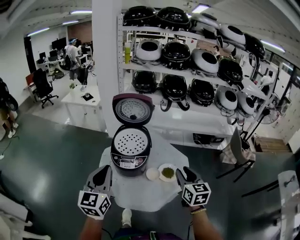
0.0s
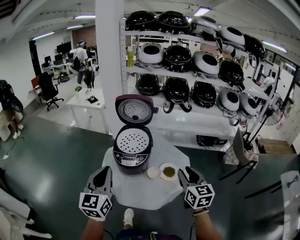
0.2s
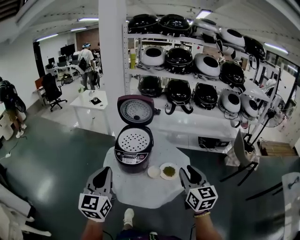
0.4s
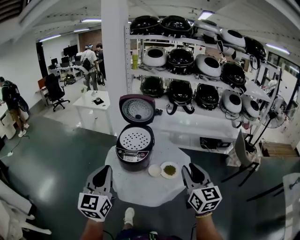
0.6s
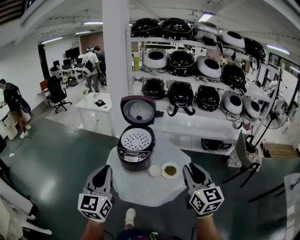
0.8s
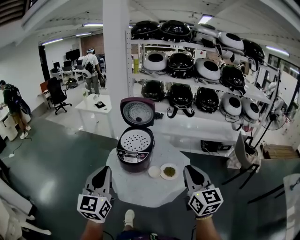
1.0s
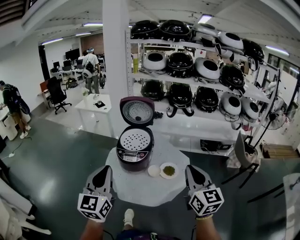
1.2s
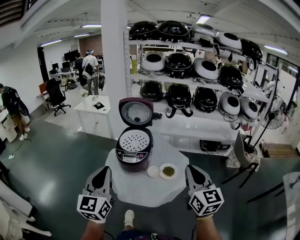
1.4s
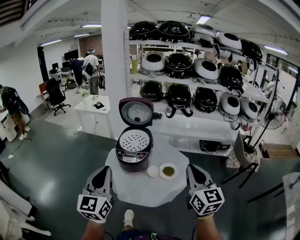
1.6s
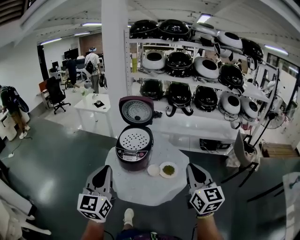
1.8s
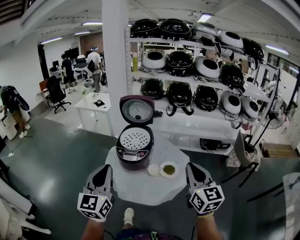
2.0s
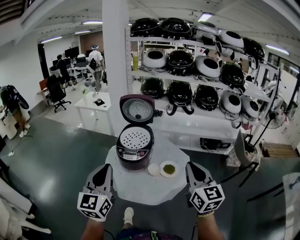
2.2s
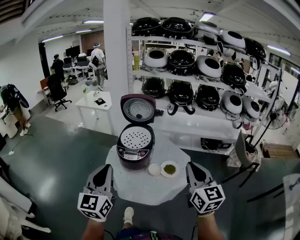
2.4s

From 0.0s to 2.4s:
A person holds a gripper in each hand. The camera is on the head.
From 0.0s to 1.2s: Both grippers travel together backward and upward, about 15 cm. The right gripper closes its fingers.
From 1.2s to 2.4s: Neither gripper changes place.

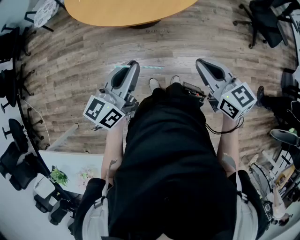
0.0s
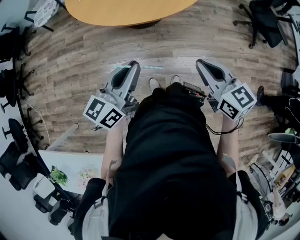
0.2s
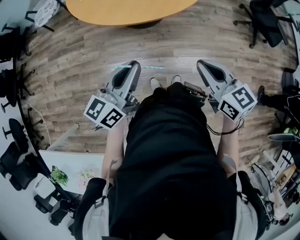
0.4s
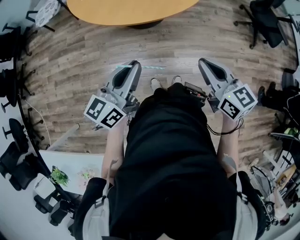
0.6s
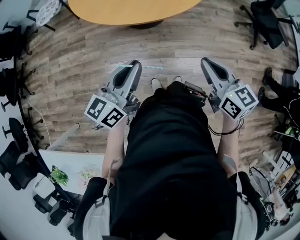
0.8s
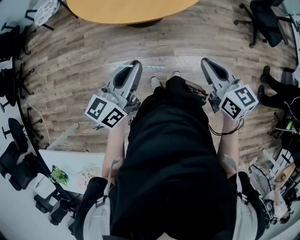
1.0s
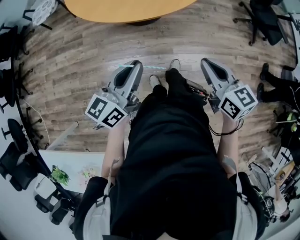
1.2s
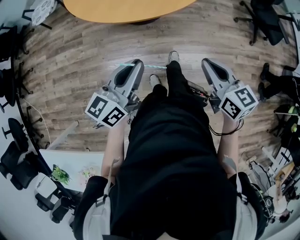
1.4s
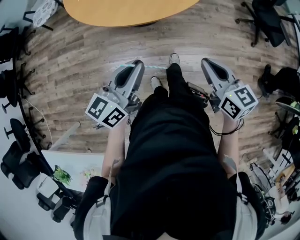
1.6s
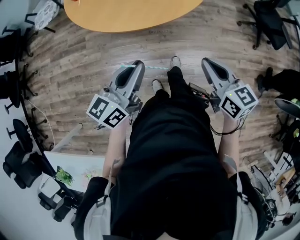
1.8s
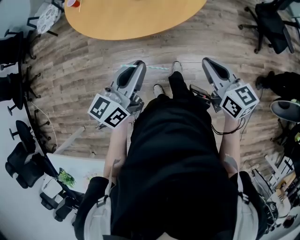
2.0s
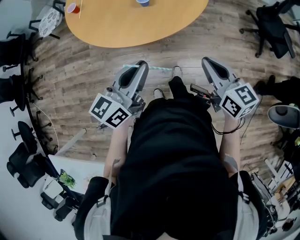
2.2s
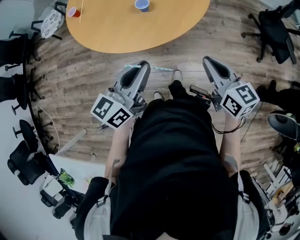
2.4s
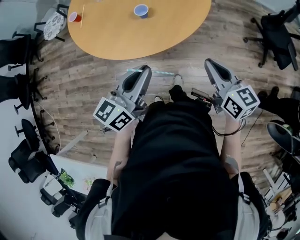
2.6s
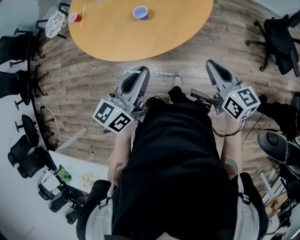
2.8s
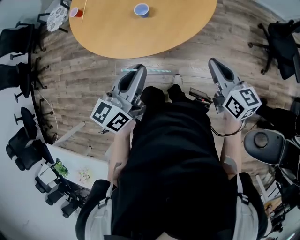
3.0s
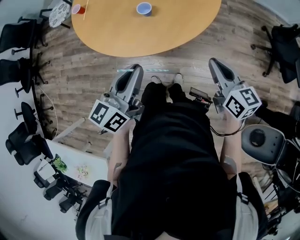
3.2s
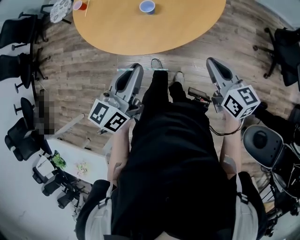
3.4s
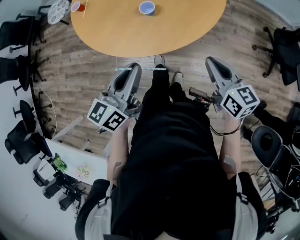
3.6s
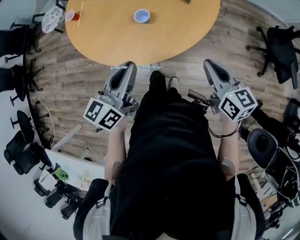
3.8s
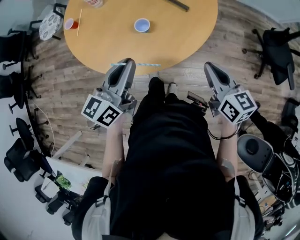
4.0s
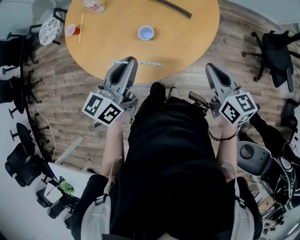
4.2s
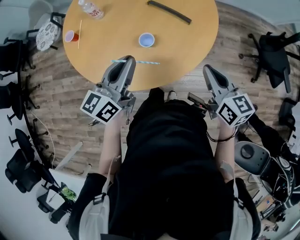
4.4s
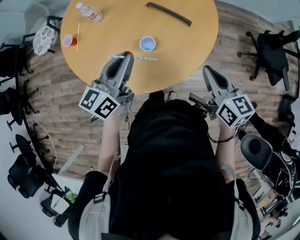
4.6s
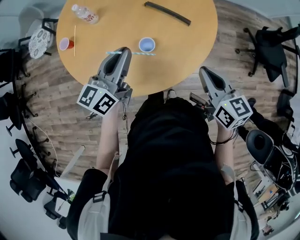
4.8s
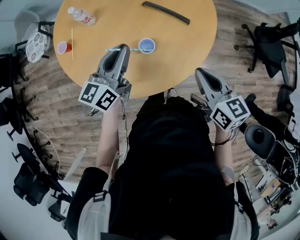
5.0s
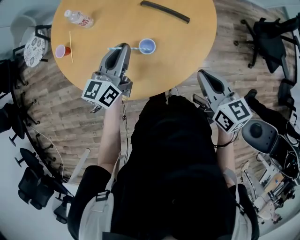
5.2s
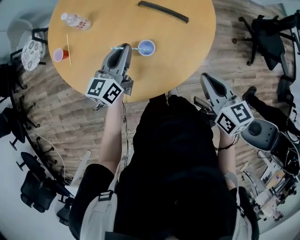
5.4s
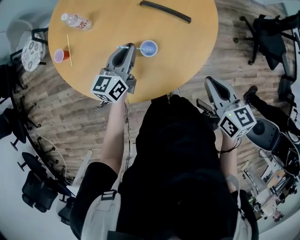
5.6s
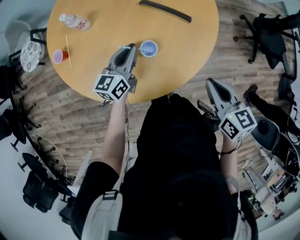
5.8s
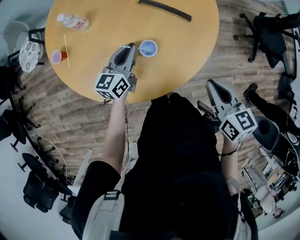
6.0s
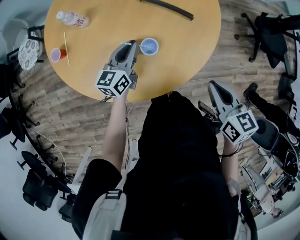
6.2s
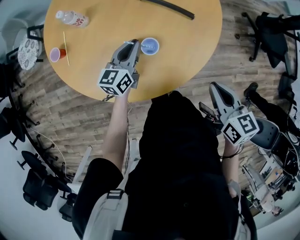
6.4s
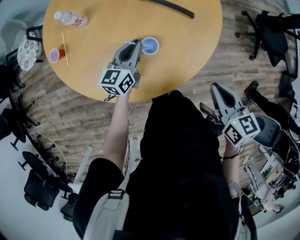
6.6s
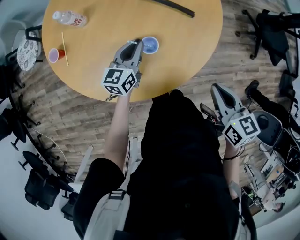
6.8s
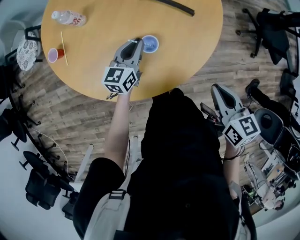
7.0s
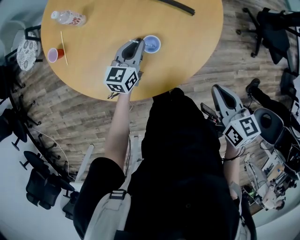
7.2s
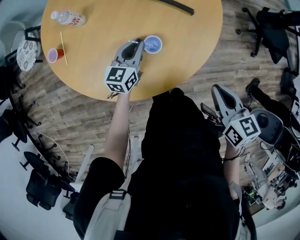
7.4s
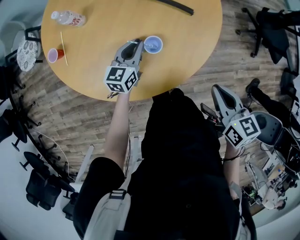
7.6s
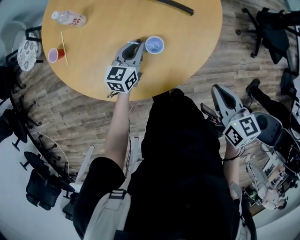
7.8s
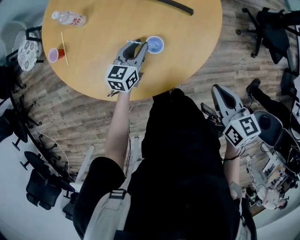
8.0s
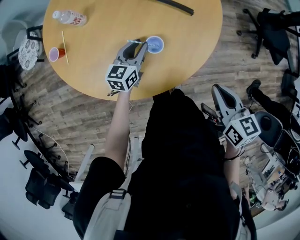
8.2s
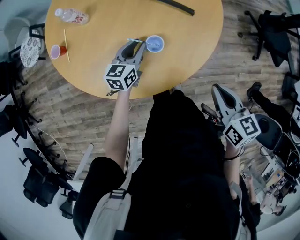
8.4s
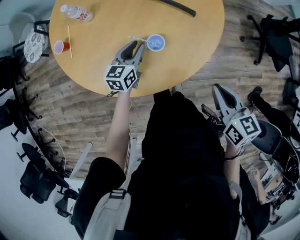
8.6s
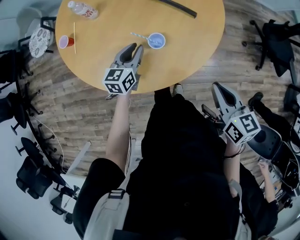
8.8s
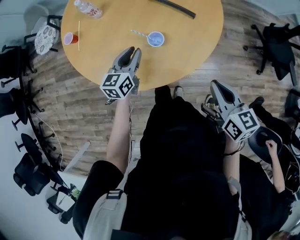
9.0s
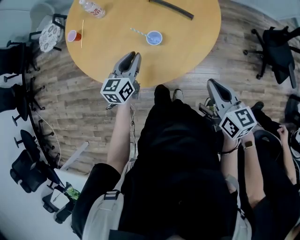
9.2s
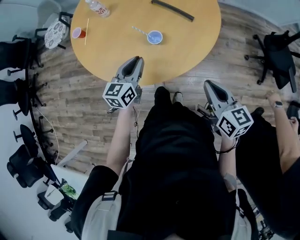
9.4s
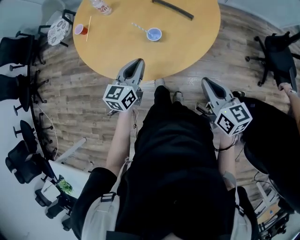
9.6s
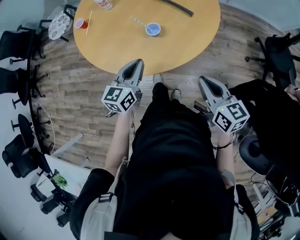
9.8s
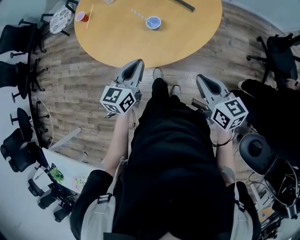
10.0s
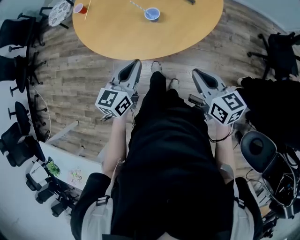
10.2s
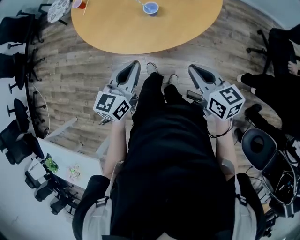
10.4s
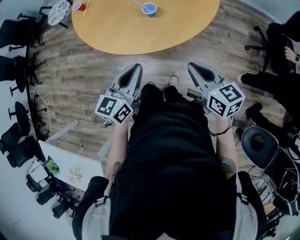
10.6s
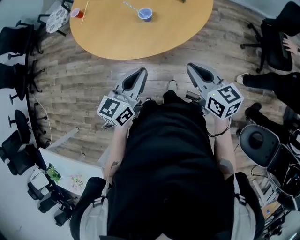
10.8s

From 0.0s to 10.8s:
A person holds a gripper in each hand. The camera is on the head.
From 0.0s to 1.6s: The grippers make only small movements.
From 1.6s to 3.0s: The grippers both shift forward and to the right by about 25 cm.
From 3.0s to 4.6s: The two grippers go roughly 20 cm forward and to the left.
From 4.6s to 6.2s: The left gripper heads downward and forward, covering approximately 20 cm.
From 6.2s to 7.8s: The left gripper moves approximately 5 cm.
From 7.8s to 9.2s: The left gripper travels backward and upward by roughly 15 cm. The right gripper moves approximately 5 cm.
From 9.2s to 10.8s: The left gripper is displaced backward by about 25 cm. Meanwhile the right gripper goes about 10 cm backward.

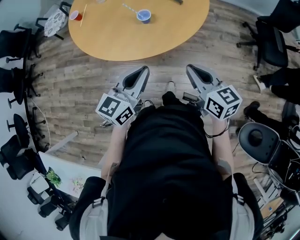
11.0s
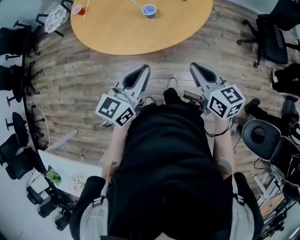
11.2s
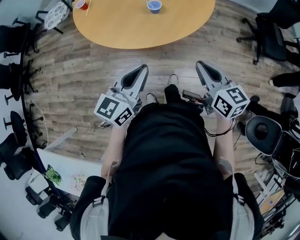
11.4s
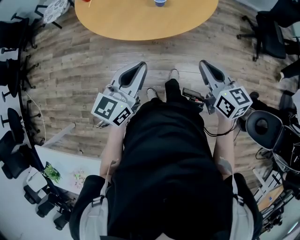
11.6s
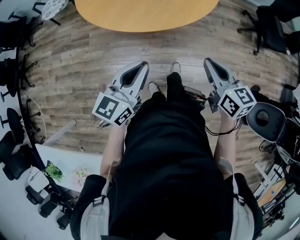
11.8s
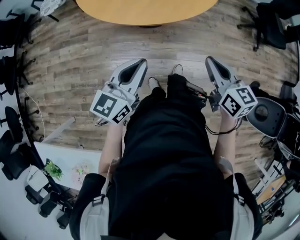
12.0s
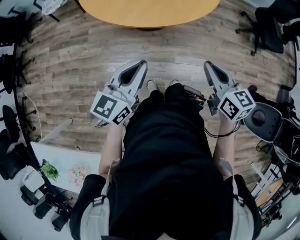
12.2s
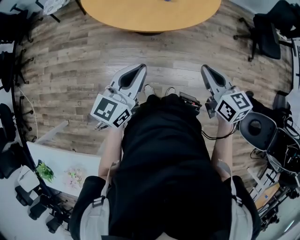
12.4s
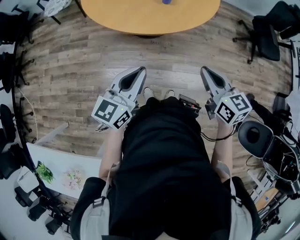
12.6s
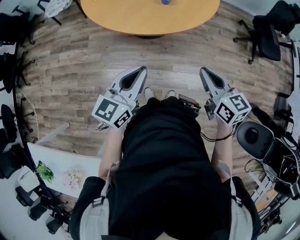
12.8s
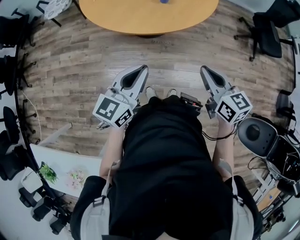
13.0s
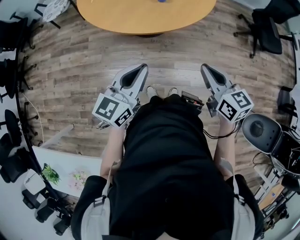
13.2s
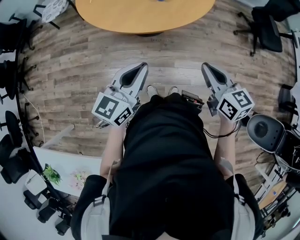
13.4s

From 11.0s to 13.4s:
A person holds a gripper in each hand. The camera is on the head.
From 11.0s to 12.2s: The right gripper shifts roughly 15 cm backward and to the left. The left gripper travels to the left and backward by roughly 20 cm.
From 12.2s to 13.4s: The grippers stay close to where they were, moving slightly.

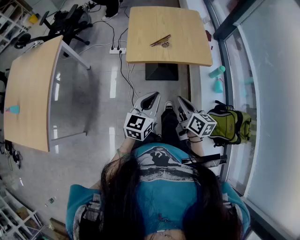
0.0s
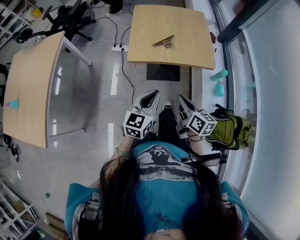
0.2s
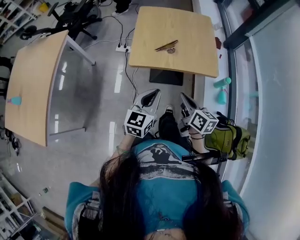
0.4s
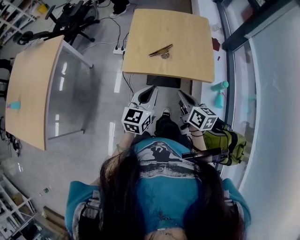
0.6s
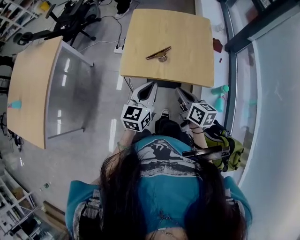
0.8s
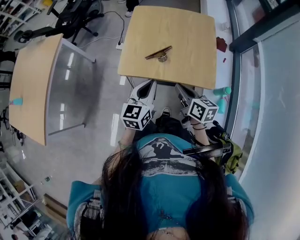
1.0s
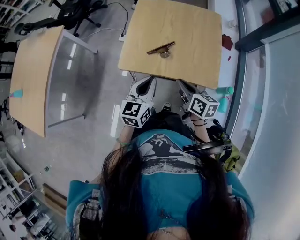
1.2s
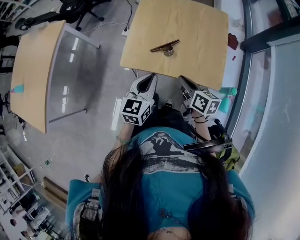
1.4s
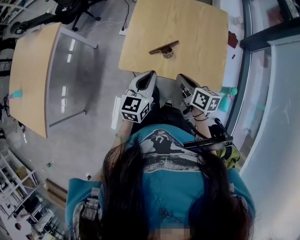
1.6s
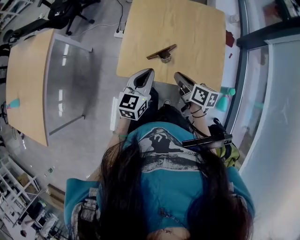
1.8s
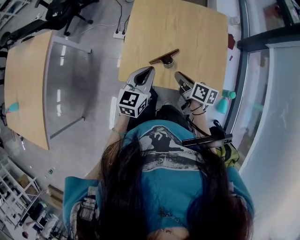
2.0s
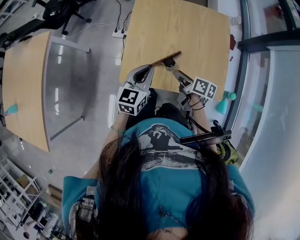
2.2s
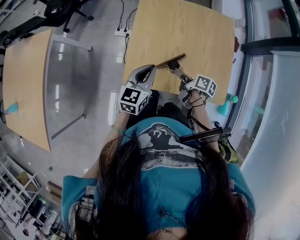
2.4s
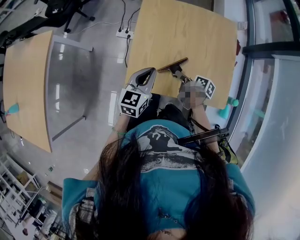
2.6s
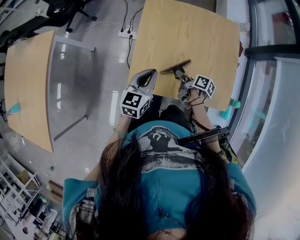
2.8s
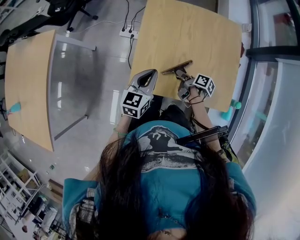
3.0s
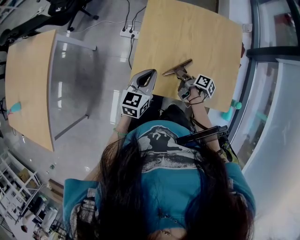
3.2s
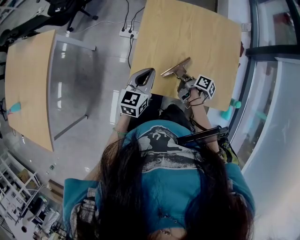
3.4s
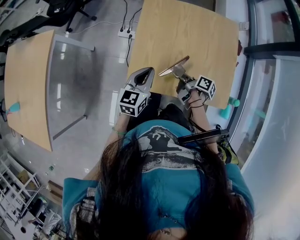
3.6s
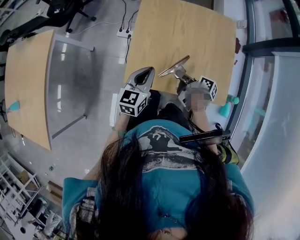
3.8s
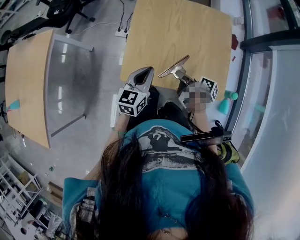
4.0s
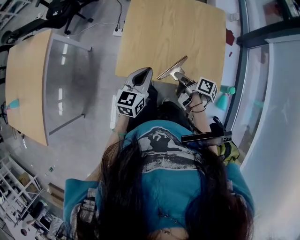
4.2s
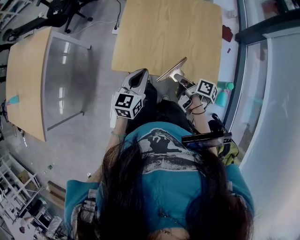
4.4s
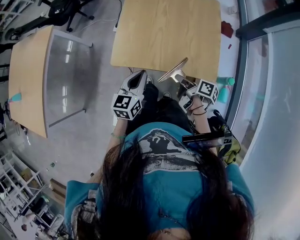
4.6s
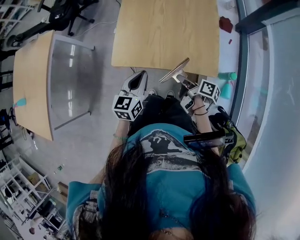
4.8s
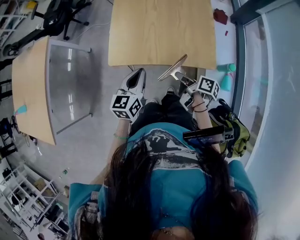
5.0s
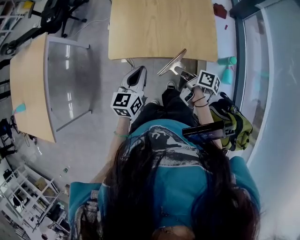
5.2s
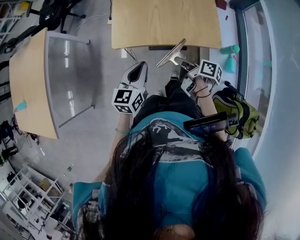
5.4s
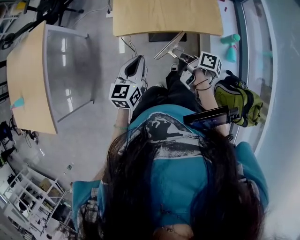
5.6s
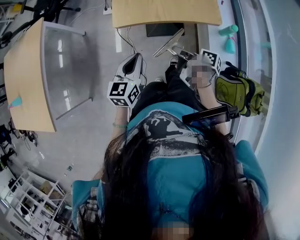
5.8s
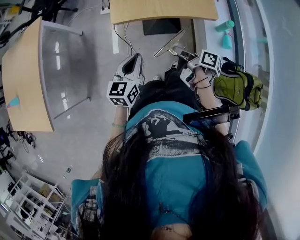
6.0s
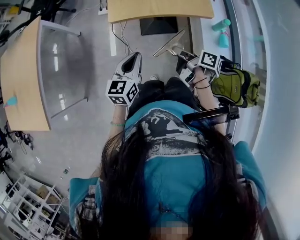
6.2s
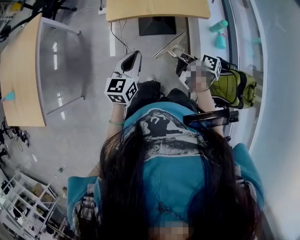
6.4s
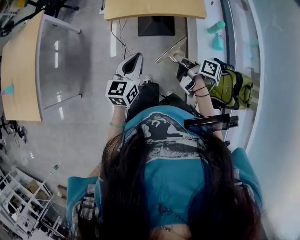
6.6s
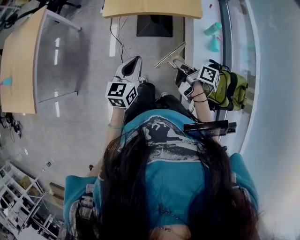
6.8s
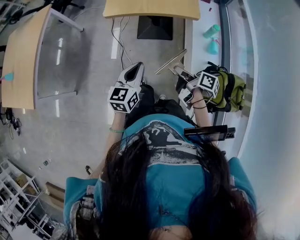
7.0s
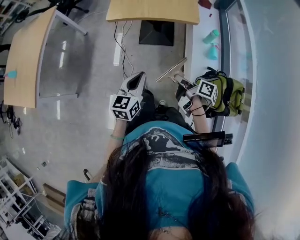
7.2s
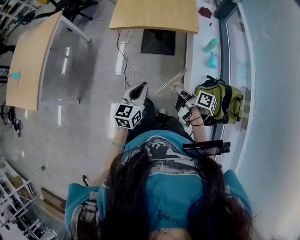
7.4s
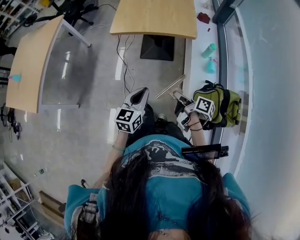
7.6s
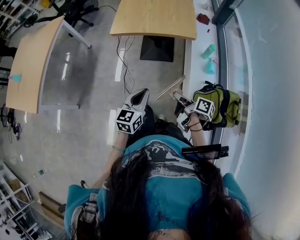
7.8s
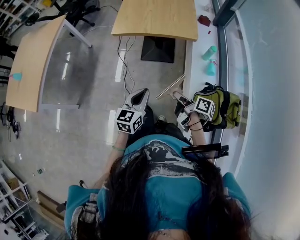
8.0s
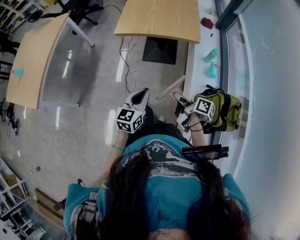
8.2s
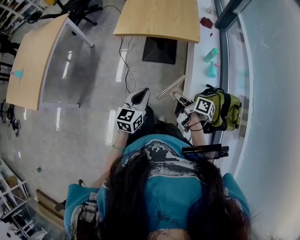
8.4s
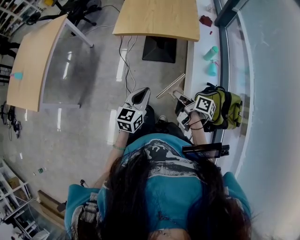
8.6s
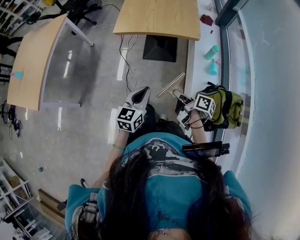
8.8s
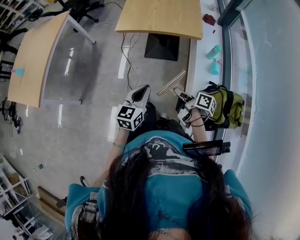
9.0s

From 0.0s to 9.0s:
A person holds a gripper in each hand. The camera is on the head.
From 0.0s to 1.6s: The left gripper moves approximately 30 cm.
From 1.6s to 3.0s: The left gripper shifts by roughly 15 cm.
From 3.0s to 4.4s: The left gripper shifts by approximately 15 cm.
From 4.4s to 6.0s: The left gripper moves roughly 25 cm.
From 6.0s to 7.6s: The left gripper ends up some 25 cm from where it was.
